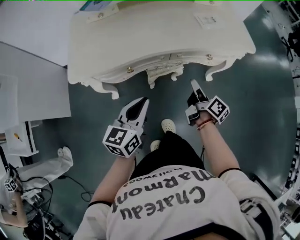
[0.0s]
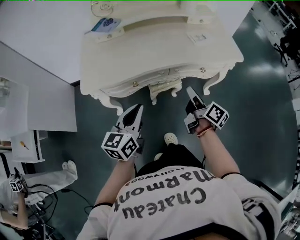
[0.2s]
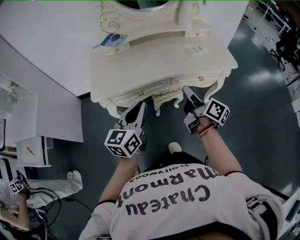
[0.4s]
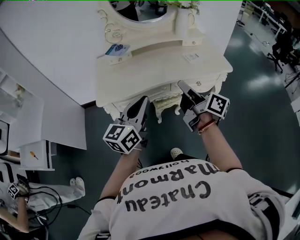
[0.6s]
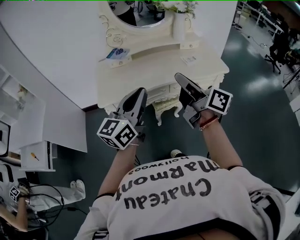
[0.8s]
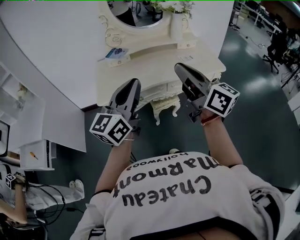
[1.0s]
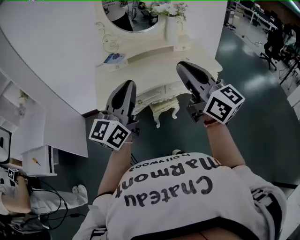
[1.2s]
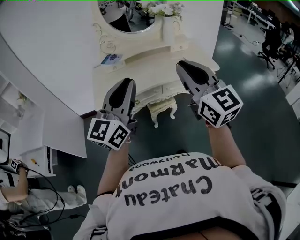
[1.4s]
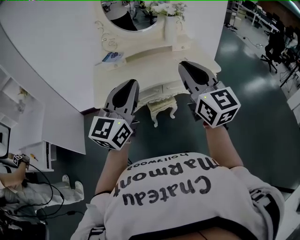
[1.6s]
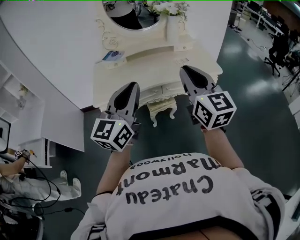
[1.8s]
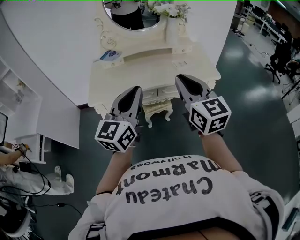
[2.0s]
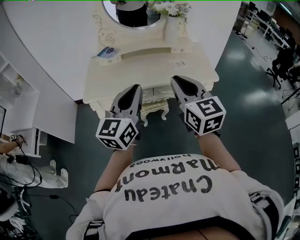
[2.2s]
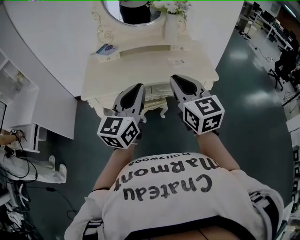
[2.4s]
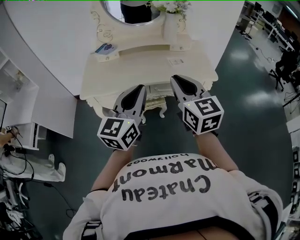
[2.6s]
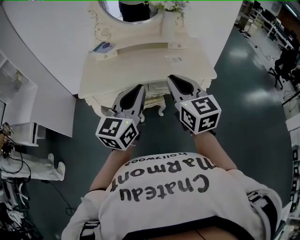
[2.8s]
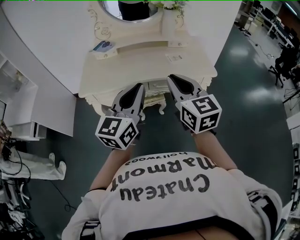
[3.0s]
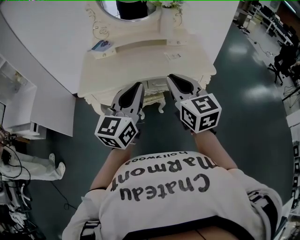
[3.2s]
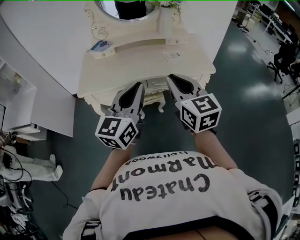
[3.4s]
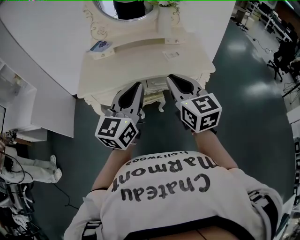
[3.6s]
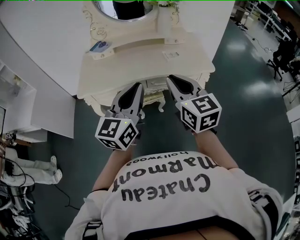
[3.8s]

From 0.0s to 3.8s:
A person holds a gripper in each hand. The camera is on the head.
From 0.0s to 1.2s: Both grippers travel together upward, approximately 40 cm. The left gripper angles its fingers upward, by roughly 30 degrees. The right gripper rotates around the line of its fingers by roughly 60 degrees, counterclockwise from behind.
From 1.2s to 2.6s: The left gripper goes about 15 cm to the right; the right gripper moves to the right, downward and forward, some 15 cm, and swivels roughly 20 degrees.
From 2.6s to 3.8s: The grippers make only small movements.

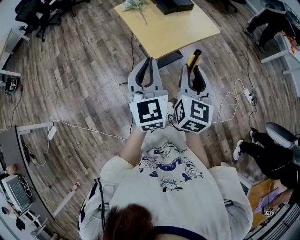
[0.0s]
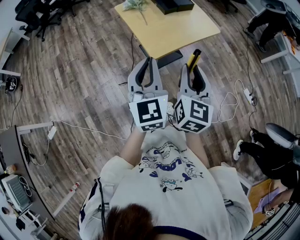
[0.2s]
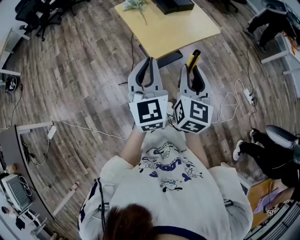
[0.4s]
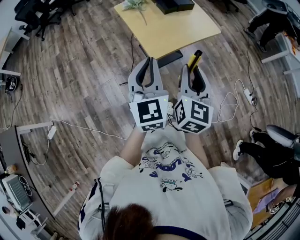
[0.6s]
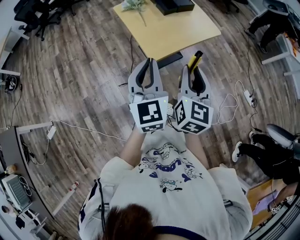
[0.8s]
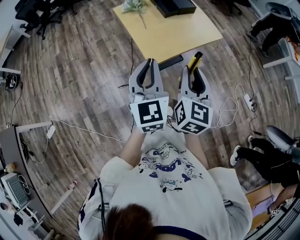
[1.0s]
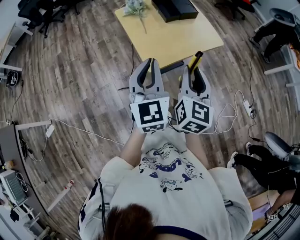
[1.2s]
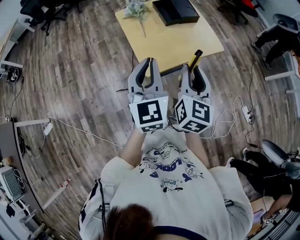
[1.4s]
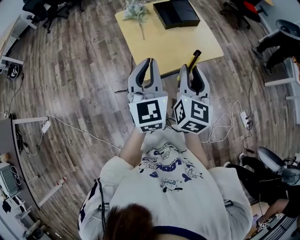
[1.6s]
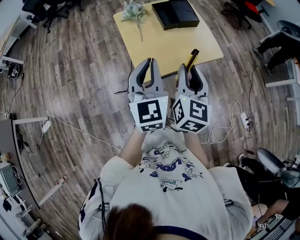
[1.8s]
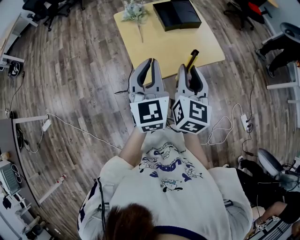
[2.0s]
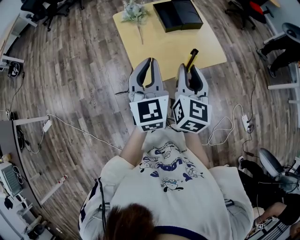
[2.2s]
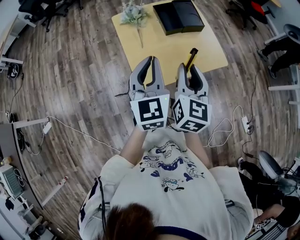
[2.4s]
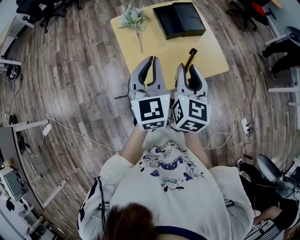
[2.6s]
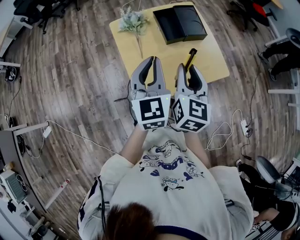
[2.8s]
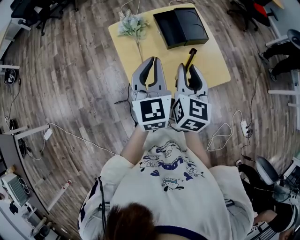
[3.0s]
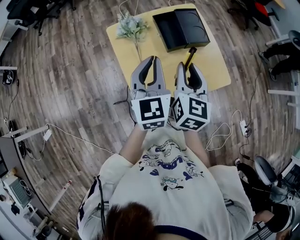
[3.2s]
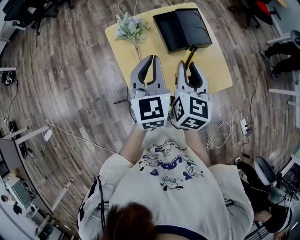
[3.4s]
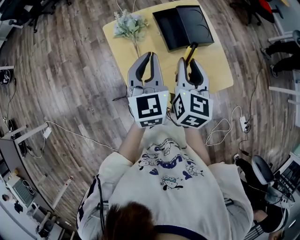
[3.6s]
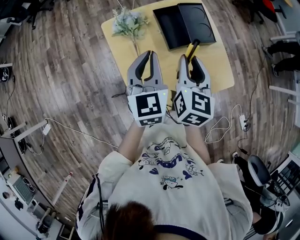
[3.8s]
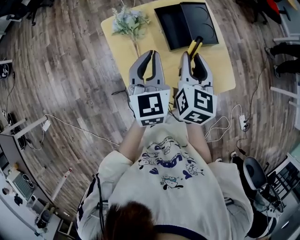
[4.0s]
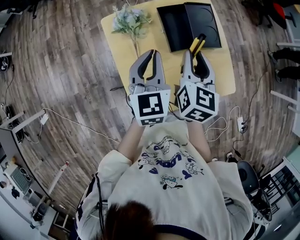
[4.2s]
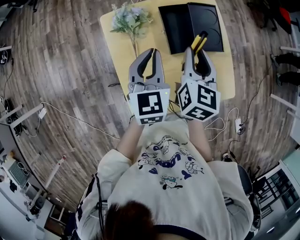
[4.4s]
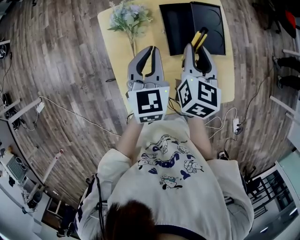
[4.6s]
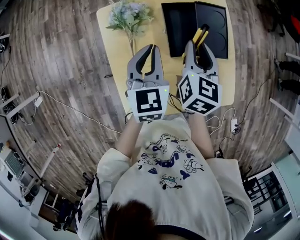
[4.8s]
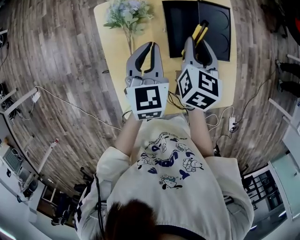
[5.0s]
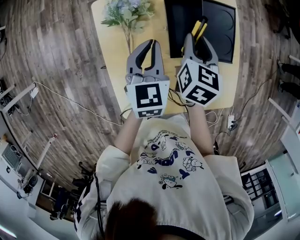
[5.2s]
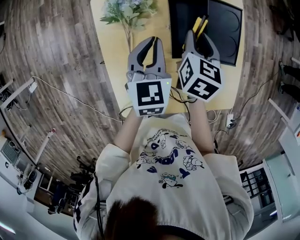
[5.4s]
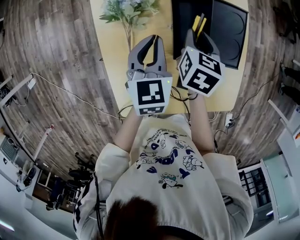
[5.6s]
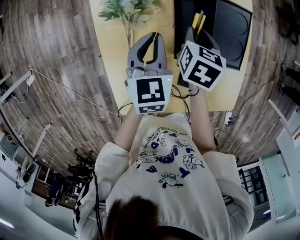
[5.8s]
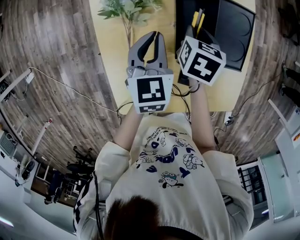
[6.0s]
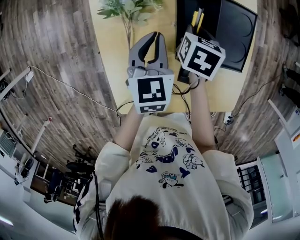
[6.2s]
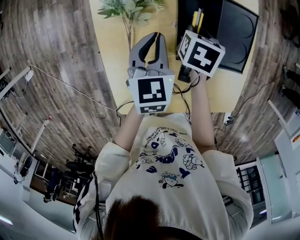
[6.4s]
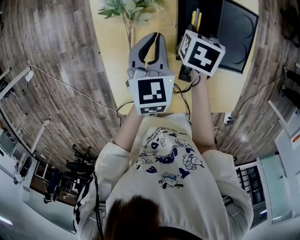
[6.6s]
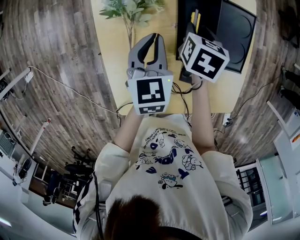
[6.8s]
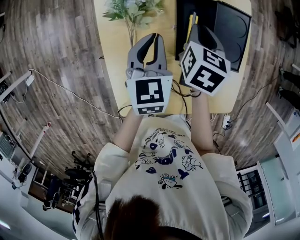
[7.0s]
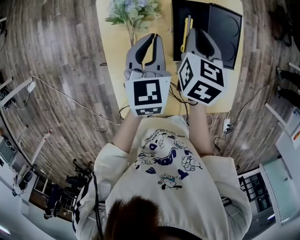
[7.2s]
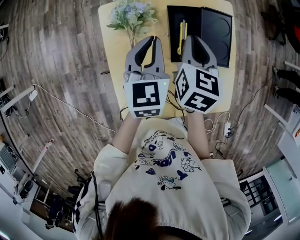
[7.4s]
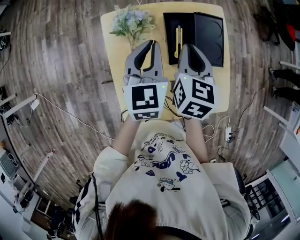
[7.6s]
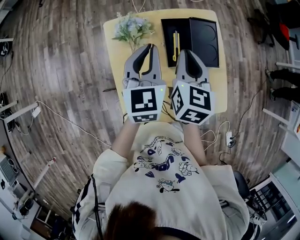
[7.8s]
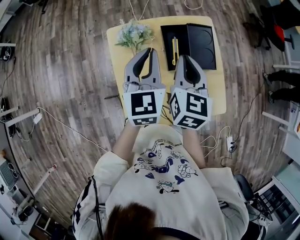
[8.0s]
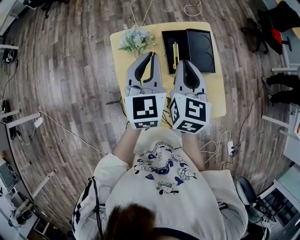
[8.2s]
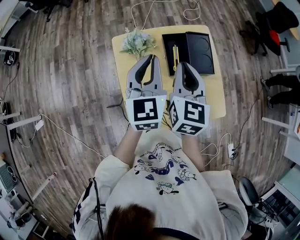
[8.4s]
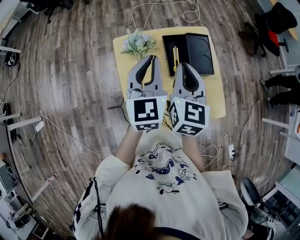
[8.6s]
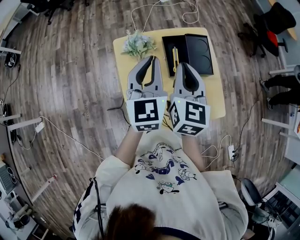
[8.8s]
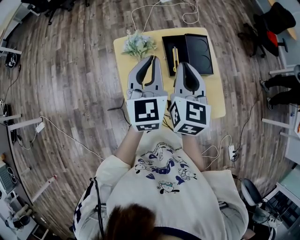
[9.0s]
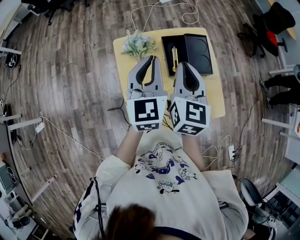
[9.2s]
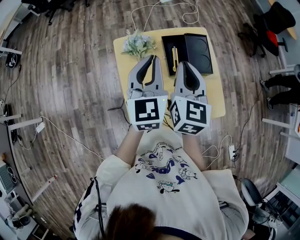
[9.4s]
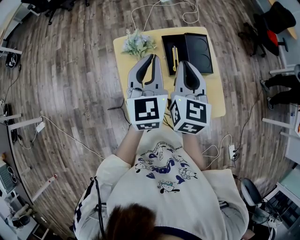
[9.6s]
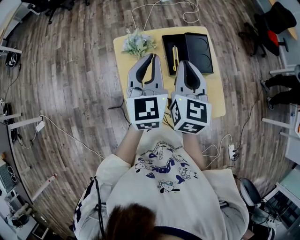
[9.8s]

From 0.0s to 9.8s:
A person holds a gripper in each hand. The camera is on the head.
From 0.0s to 1.4s: The two grippers go approximately 15 cm forward.
From 1.4s to 2.8s: The grippers both shift forward by about 20 cm.
From 2.8s to 4.2s: The left gripper is displaced forward and downward by approximately 20 cm, while the right gripper goes about 20 cm forward.
From 4.2s to 5.6s: Both grippers travel together downward and forward, approximately 20 cm. The right gripper changes its angle by approximately 30 degrees.
From 5.6s to 7.0s: The right gripper goes downward and returns, approximately 5 cm each way.
From 7.0s to 8.4s: The right gripper moves upward and backward, approximately 25 cm, and tilts its fingers about 30 degrees upward, while the left gripper is displaced upward by roughly 20 cm, and rotates some 20 degrees.
From 8.4s to 9.8s: There are only small adjustments of the grippers.

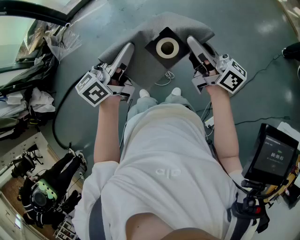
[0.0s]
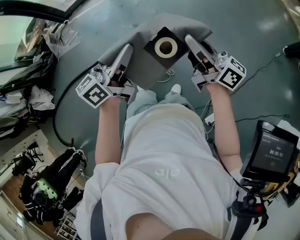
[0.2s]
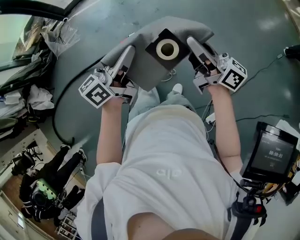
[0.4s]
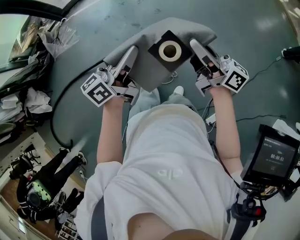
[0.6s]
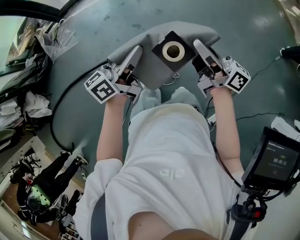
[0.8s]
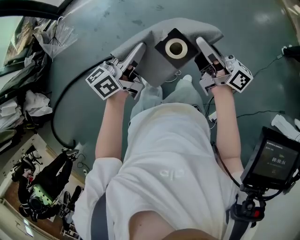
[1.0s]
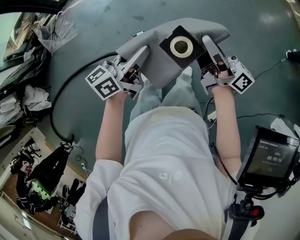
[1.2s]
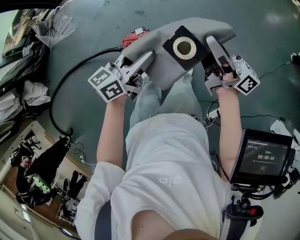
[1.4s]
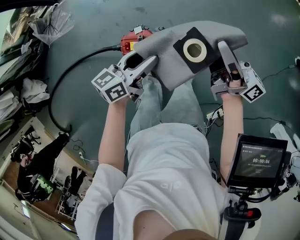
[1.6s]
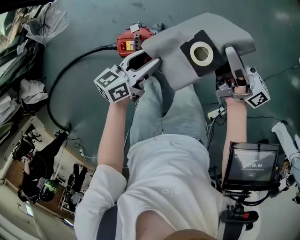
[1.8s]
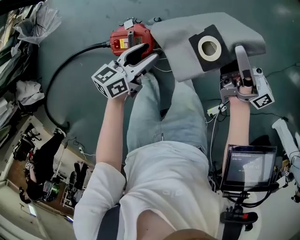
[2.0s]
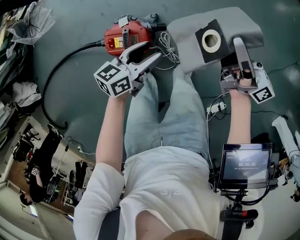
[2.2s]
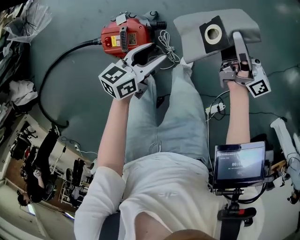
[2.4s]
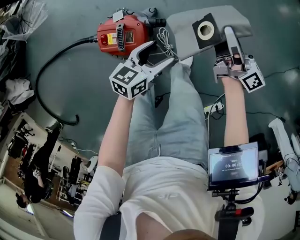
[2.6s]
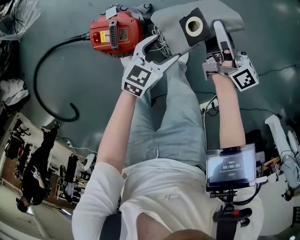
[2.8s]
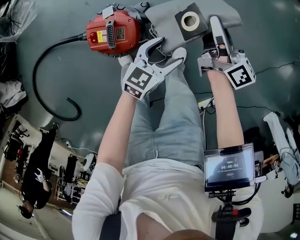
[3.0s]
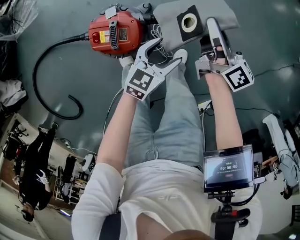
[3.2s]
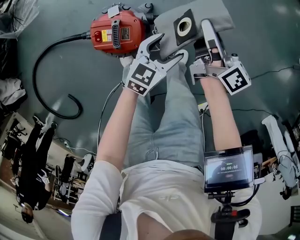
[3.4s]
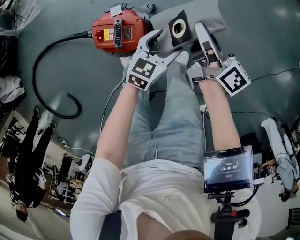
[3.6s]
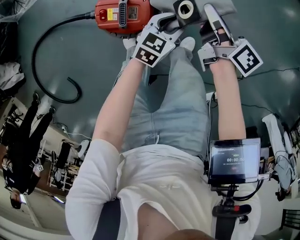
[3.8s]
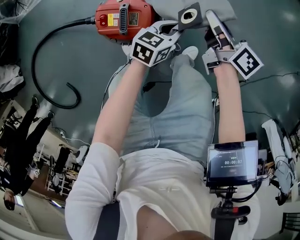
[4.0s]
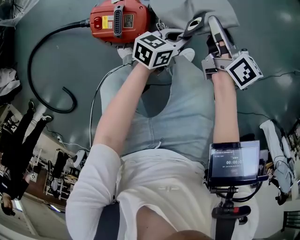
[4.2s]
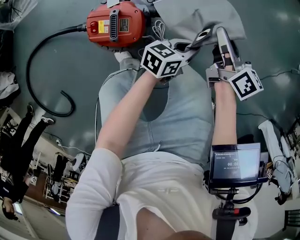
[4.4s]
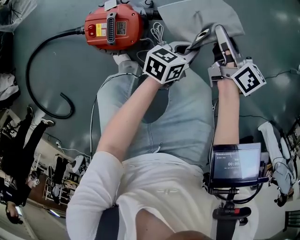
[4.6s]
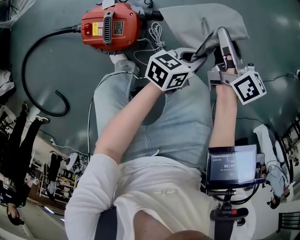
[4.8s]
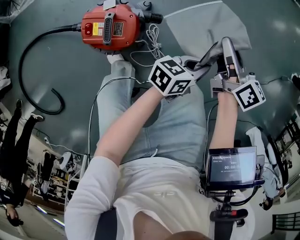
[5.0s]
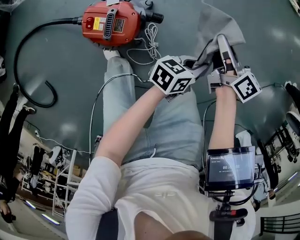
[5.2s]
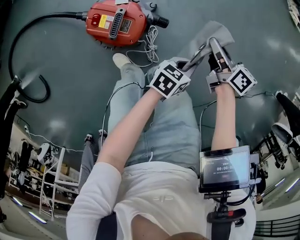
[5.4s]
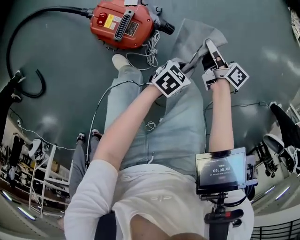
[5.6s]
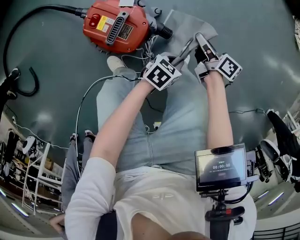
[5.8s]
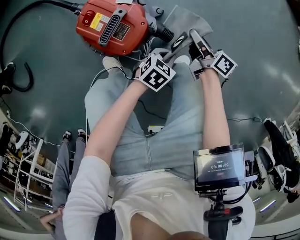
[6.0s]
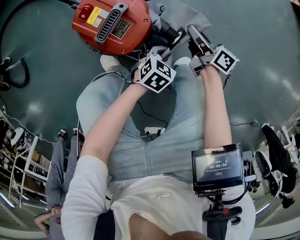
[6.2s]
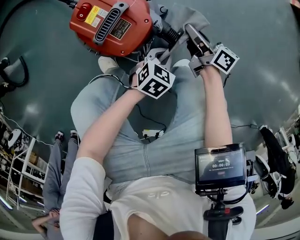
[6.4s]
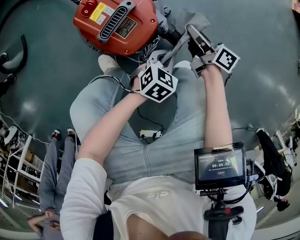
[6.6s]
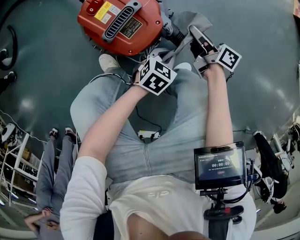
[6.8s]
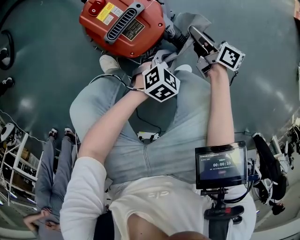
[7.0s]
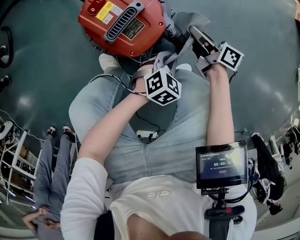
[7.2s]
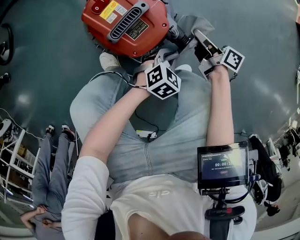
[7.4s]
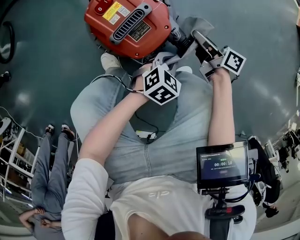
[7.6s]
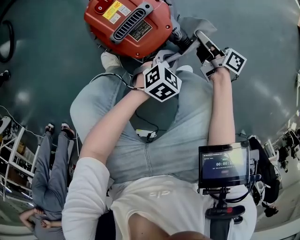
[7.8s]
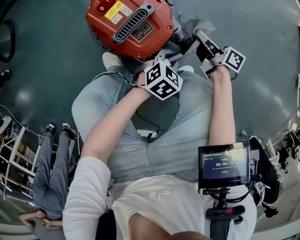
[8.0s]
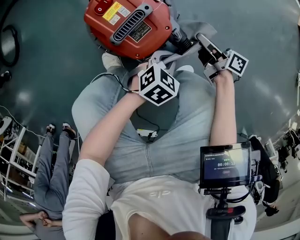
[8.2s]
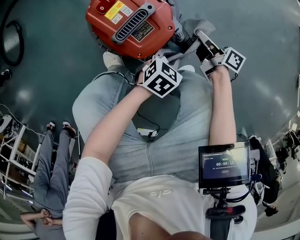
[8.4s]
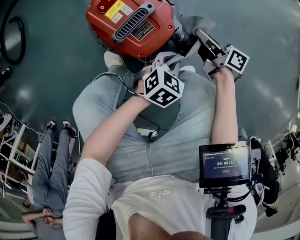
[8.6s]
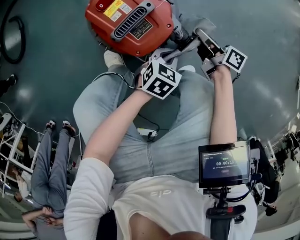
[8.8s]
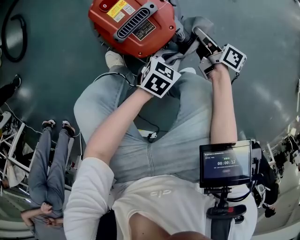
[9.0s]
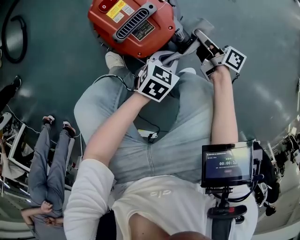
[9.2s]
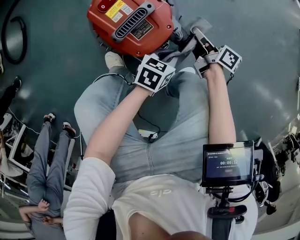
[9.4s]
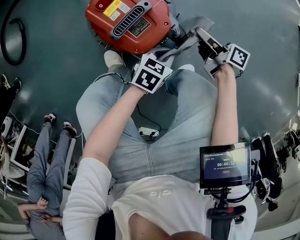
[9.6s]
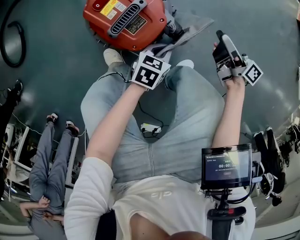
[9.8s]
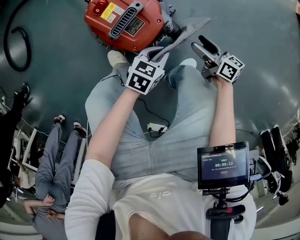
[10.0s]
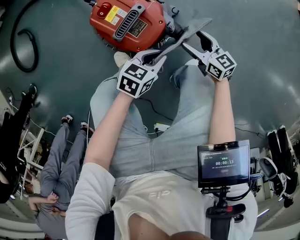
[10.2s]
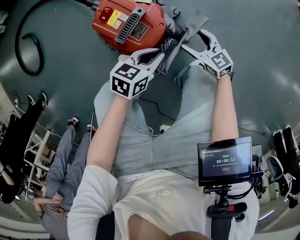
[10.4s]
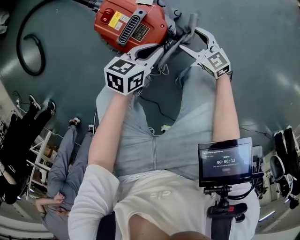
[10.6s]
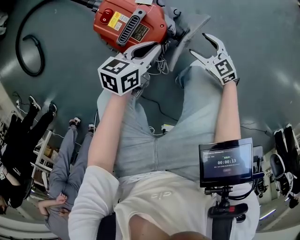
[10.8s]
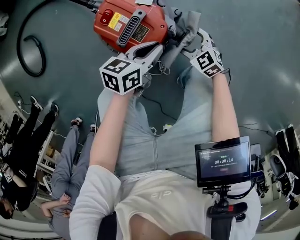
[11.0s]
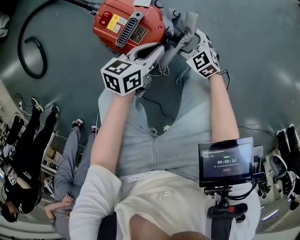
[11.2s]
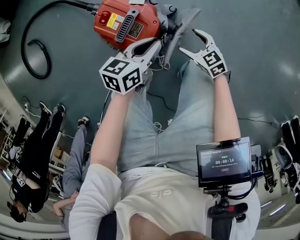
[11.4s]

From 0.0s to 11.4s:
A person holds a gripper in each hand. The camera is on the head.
From 0.0s to 1.4s: The right gripper goes roughly 25 cm forward, to the left and downward; the left gripper travels downward, forward and to the left by roughly 25 cm, and opens its fingers.
From 1.4s to 2.8s: The grippers both shift downward by some 40 cm. The right gripper turns by approximately 20 degrees. Meanwhile the left gripper changes its angle by roughly 30 degrees, and opens its fingers.
From 2.8s to 4.2s: The left gripper is displaced to the right by approximately 5 cm, turns by some 20 degrees, and closes its fingers, while the right gripper changes its angle by about 20 degrees.
From 4.2s to 5.6s: The right gripper shifts some 10 cm downward, and swivels some 30 degrees.
From 5.6s to 7.2s: Both grippers travel together downward, approximately 15 cm. The right gripper changes its angle by roughly 30 degrees; the left gripper swivels roughly 40 degrees.
From 7.2s to 8.6s: There are only small adjustments of the grippers.
From 8.6s to 10.0s: The right gripper is displaced backward by roughly 5 cm, and opens its fingers. The left gripper ends up some 5 cm from where it was.
From 10.0s to 11.4s: The left gripper changes place by some 10 cm. Meanwhile the right gripper changes place by approximately 10 cm, and turns by approximately 40 degrees.
